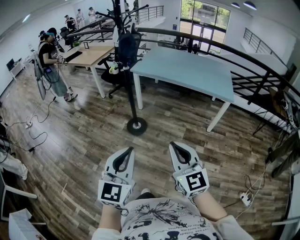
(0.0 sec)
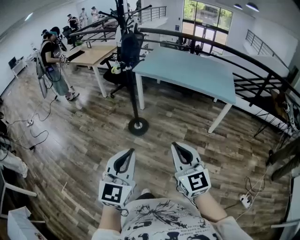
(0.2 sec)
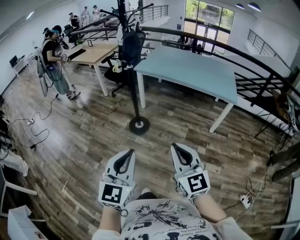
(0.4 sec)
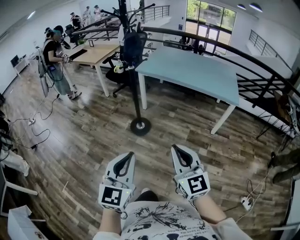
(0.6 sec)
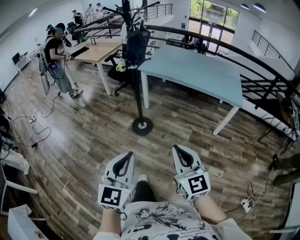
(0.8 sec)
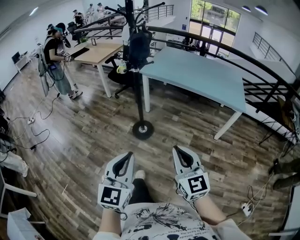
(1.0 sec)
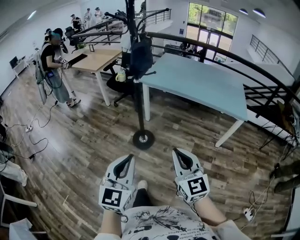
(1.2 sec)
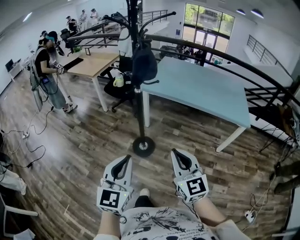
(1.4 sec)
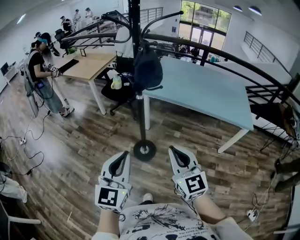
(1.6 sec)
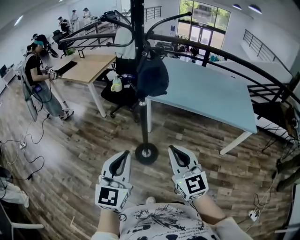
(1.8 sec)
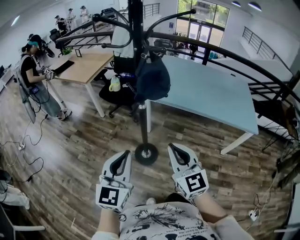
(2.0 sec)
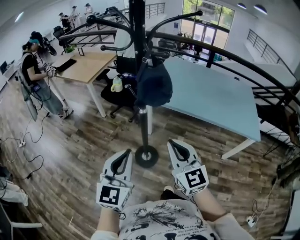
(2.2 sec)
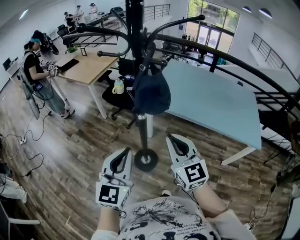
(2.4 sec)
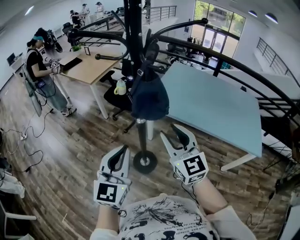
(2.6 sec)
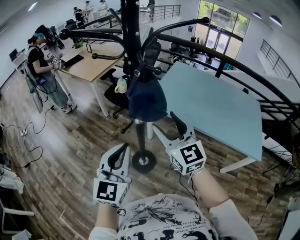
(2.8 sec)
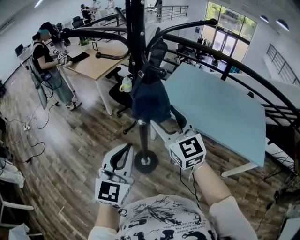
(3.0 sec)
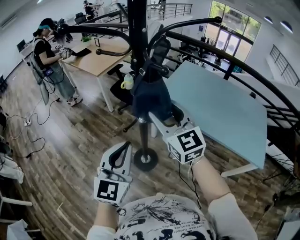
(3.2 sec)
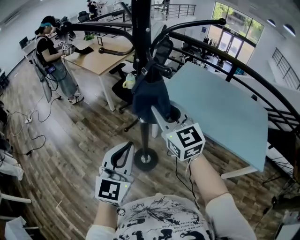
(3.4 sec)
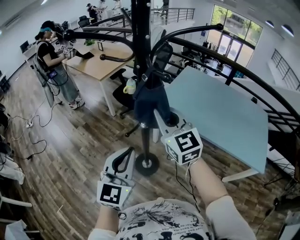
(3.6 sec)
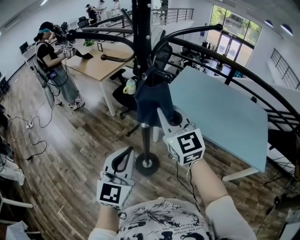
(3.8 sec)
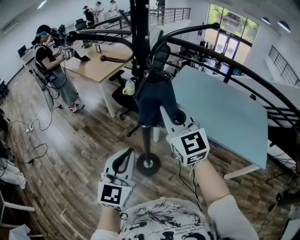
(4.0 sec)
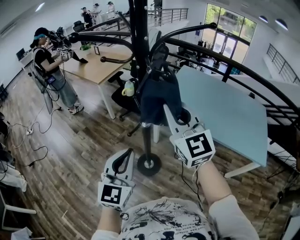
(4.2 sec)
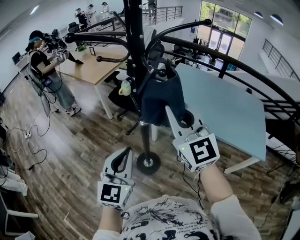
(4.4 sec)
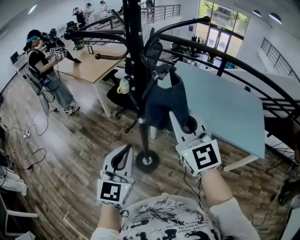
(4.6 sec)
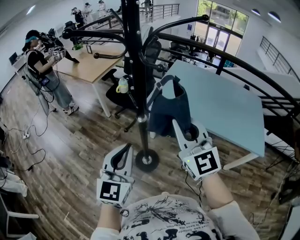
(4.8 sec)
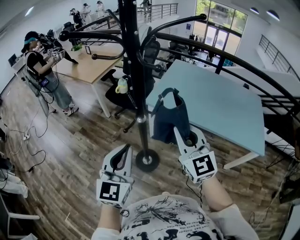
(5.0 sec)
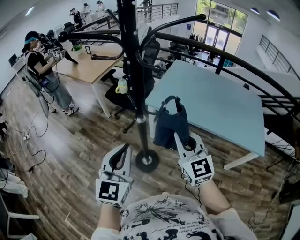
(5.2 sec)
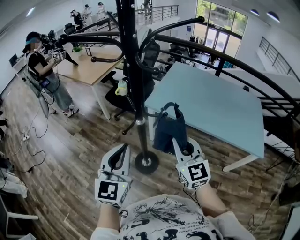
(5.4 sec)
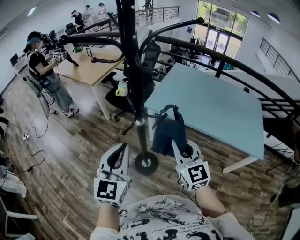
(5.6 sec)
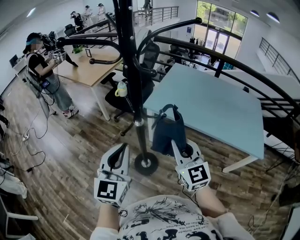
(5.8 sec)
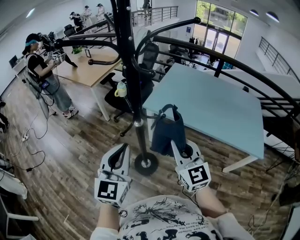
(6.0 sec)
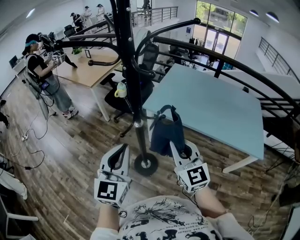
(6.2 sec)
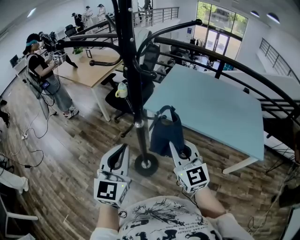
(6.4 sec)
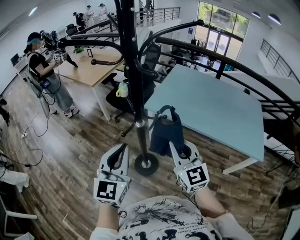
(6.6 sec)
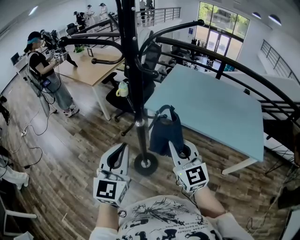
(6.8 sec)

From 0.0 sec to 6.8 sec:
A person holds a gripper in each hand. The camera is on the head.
From 0.0 sec to 1.4 sec: The left gripper is displaced forward and to the left by approximately 30 cm. Meanwhile the right gripper heads forward, covering about 25 cm.
From 1.4 sec to 2.8 sec: Both grippers move forward, some 35 cm. The right gripper opens up.
From 2.8 sec to 4.0 sec: The right gripper travels upward by approximately 5 cm, and closes.
From 4.0 sec to 5.4 sec: The right gripper shifts about 15 cm downward, backward and to the right.
From 5.4 sec to 6.8 sec: There are only small adjustments of the grippers.

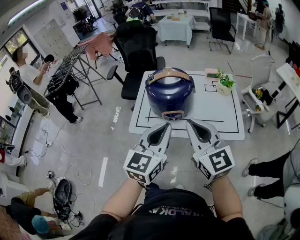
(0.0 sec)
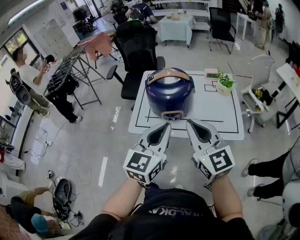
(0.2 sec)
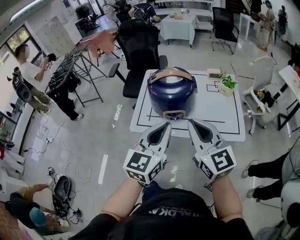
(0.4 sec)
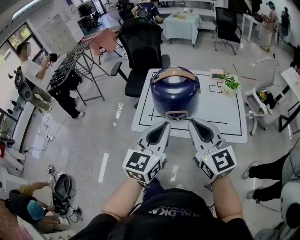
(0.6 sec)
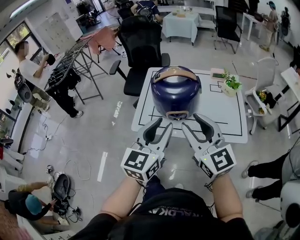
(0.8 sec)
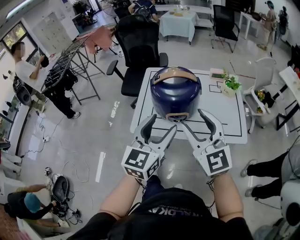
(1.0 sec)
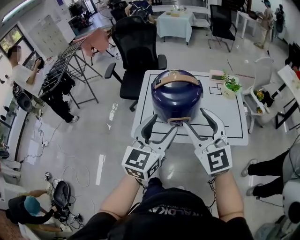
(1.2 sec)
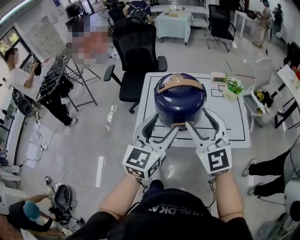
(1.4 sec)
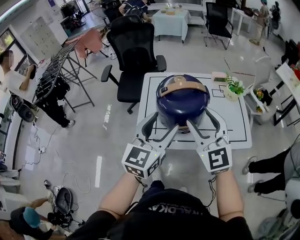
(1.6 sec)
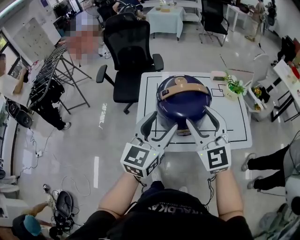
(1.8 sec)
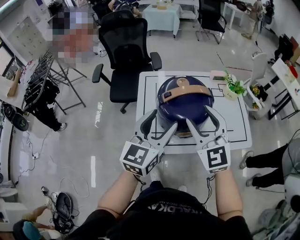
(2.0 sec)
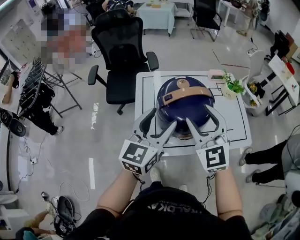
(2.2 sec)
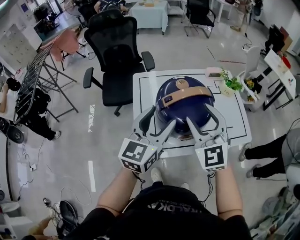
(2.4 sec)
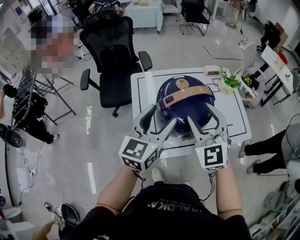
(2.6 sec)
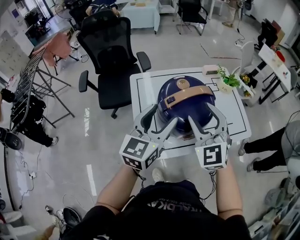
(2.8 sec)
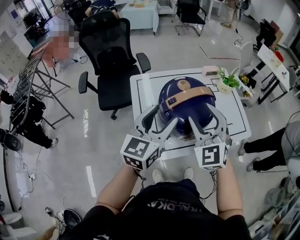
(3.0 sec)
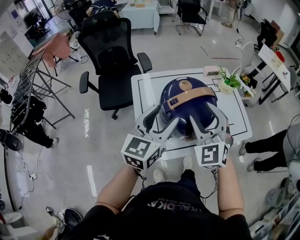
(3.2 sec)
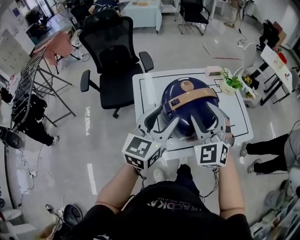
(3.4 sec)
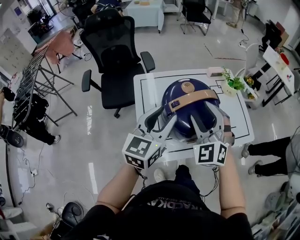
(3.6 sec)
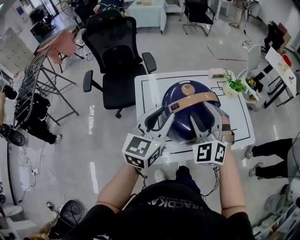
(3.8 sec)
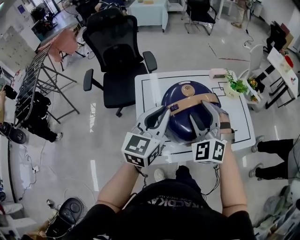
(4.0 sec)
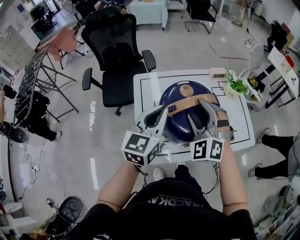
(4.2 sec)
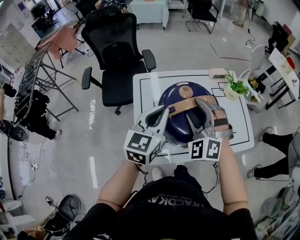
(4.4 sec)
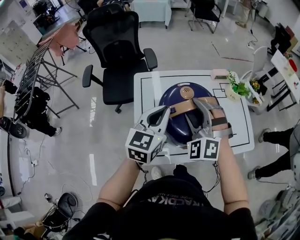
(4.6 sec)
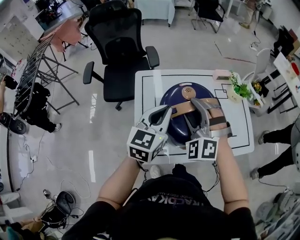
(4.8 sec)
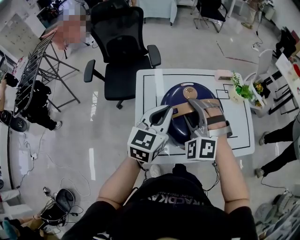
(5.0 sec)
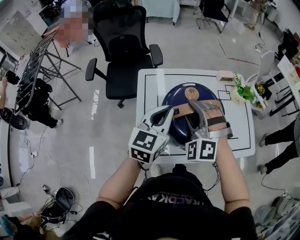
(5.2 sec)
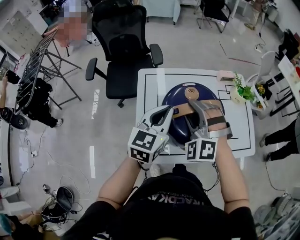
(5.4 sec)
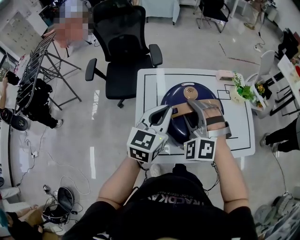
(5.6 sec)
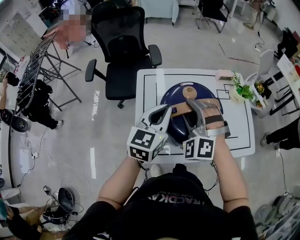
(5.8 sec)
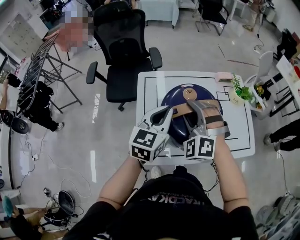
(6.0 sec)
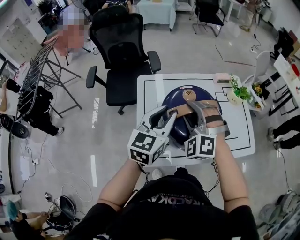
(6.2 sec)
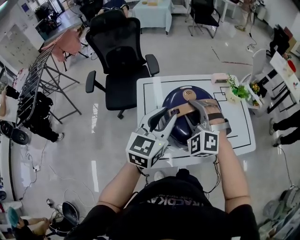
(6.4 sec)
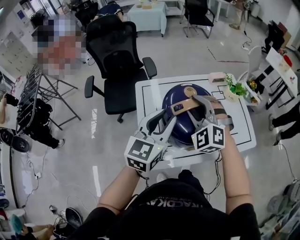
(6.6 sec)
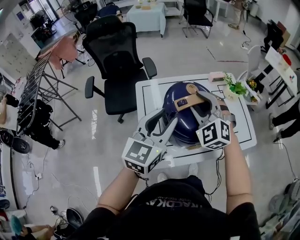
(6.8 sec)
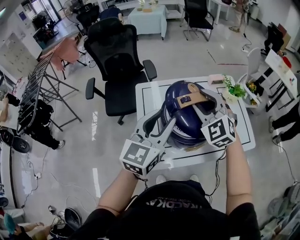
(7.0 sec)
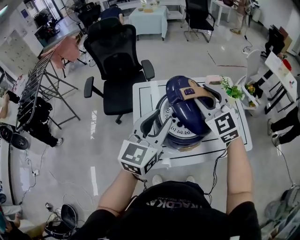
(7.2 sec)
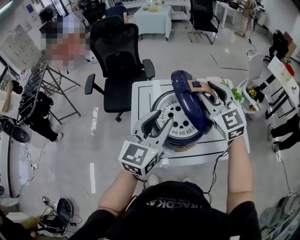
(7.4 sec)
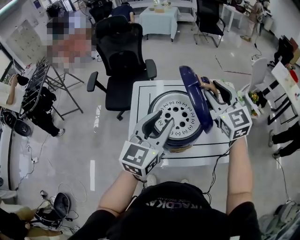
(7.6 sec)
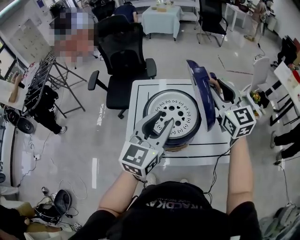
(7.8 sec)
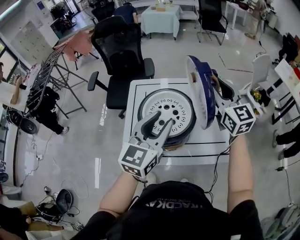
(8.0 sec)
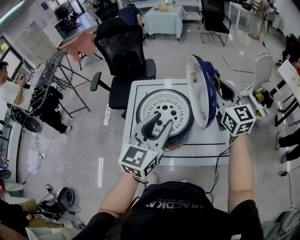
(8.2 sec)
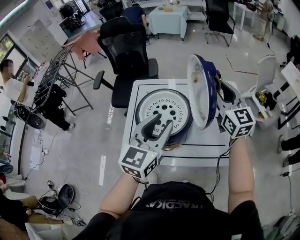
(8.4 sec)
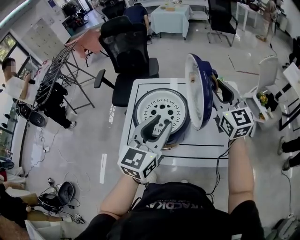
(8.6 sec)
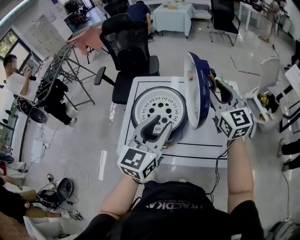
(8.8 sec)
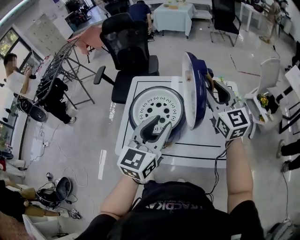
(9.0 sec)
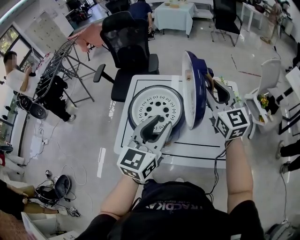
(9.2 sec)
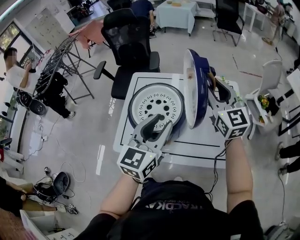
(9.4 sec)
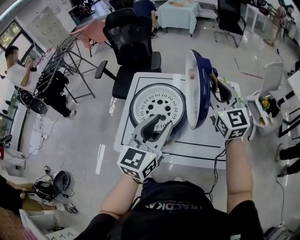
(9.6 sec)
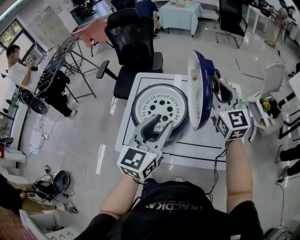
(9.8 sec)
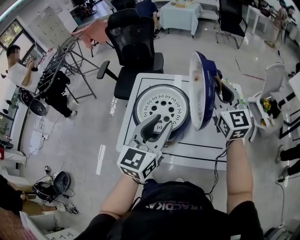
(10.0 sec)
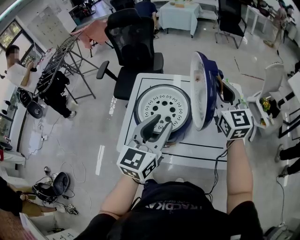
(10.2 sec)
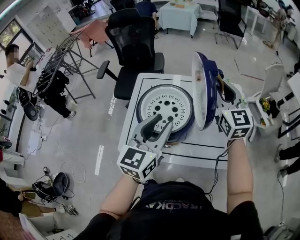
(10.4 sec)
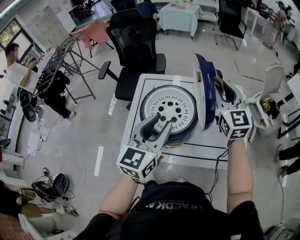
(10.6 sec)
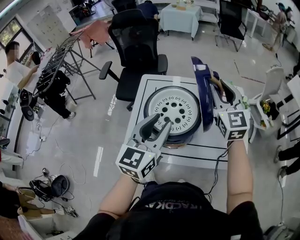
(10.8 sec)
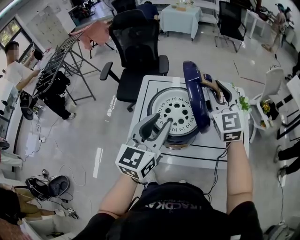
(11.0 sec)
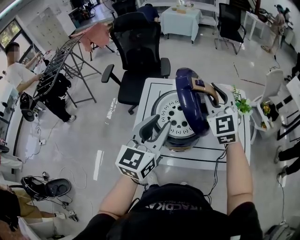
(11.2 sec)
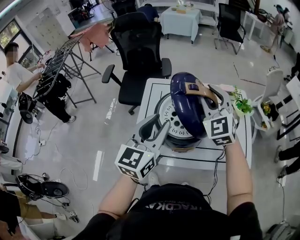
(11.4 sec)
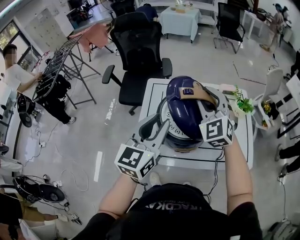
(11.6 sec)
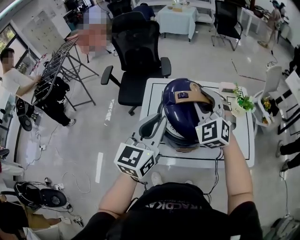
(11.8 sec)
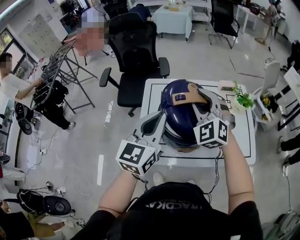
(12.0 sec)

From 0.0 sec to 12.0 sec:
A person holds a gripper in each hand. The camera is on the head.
From 0.0 sec to 1.6 sec: The two grippers go some 15 cm forward and to the left. The left gripper opens its fingers. The right gripper rotates about 20 degrees, and opens up.
From 1.6 sec to 3.0 sec: Both grippers move forward and to the left, about 15 cm. The right gripper changes its angle by roughly 30 degrees.
From 3.0 sec to 4.4 sec: The two grippers go about 5 cm forward. The left gripper closes its fingers. Meanwhile the right gripper turns by approximately 30 degrees.
From 4.4 sec to 6.0 sec: The grippers move only a little.
From 6.0 sec to 7.6 sec: The left gripper goes about 10 cm upward, to the right and backward, and opens, while the right gripper goes some 20 cm to the right and upward, and rotates around the line of its fingers by some 50 degrees, clockwise from behind.
From 7.6 sec to 9.0 sec: The grippers both shift to the right by about 10 cm.
From 9.0 sec to 10.4 sec: There are only small adjustments of the grippers.
From 10.4 sec to 12.0 sec: The grippers both shift to the left by approximately 15 cm. The left gripper closes its fingers, while the right gripper twists roughly 40 degrees counterclockwise, seen from behind.

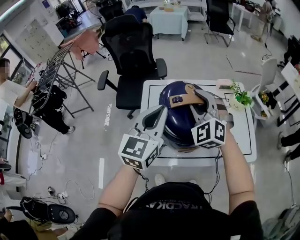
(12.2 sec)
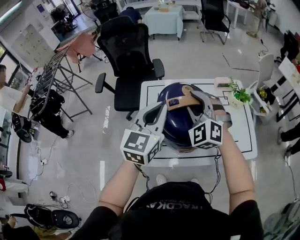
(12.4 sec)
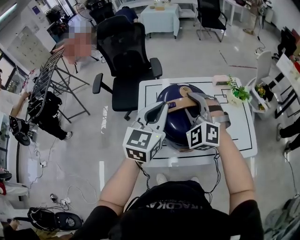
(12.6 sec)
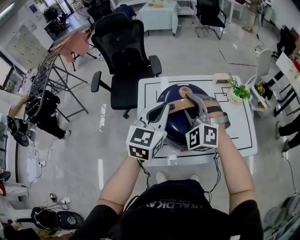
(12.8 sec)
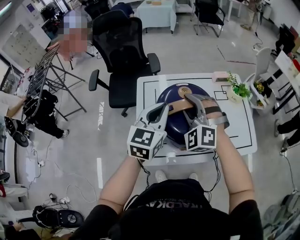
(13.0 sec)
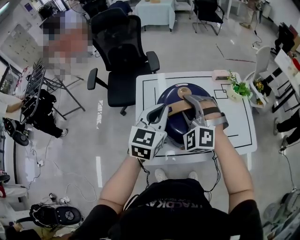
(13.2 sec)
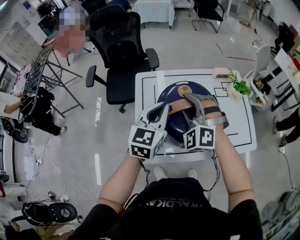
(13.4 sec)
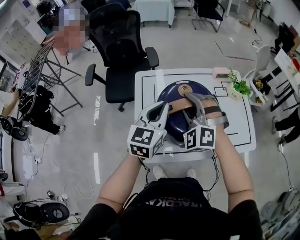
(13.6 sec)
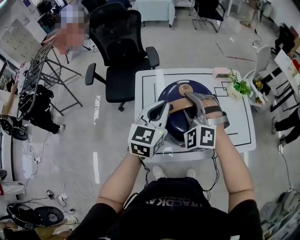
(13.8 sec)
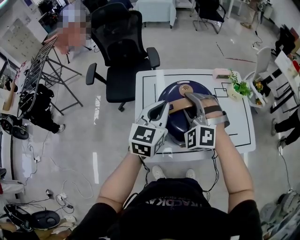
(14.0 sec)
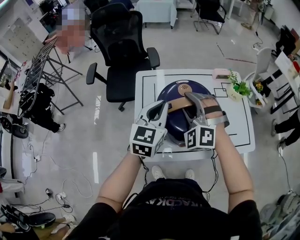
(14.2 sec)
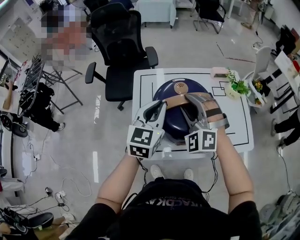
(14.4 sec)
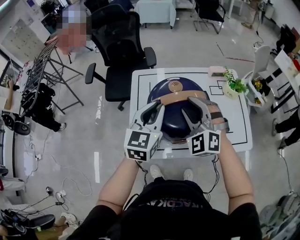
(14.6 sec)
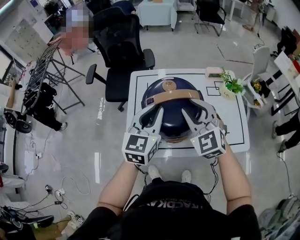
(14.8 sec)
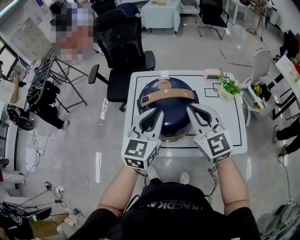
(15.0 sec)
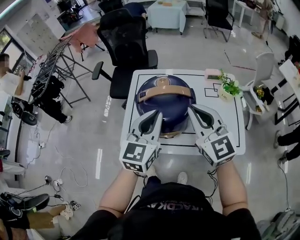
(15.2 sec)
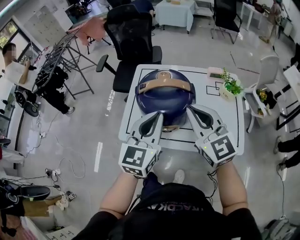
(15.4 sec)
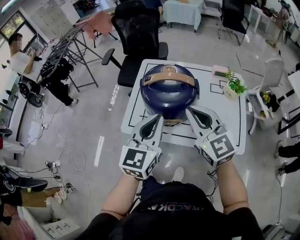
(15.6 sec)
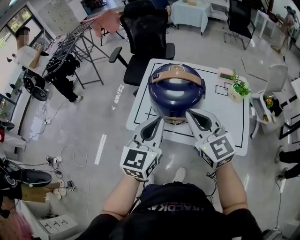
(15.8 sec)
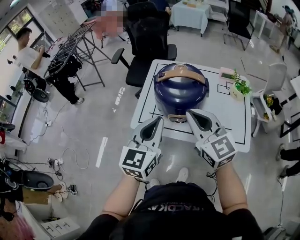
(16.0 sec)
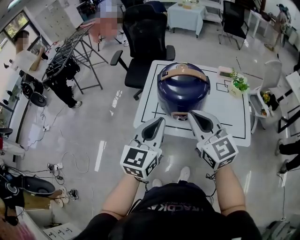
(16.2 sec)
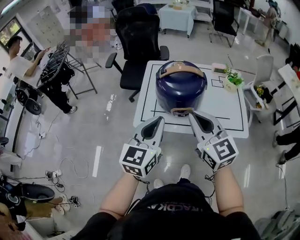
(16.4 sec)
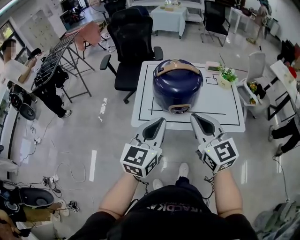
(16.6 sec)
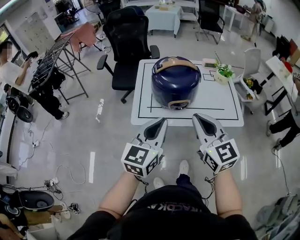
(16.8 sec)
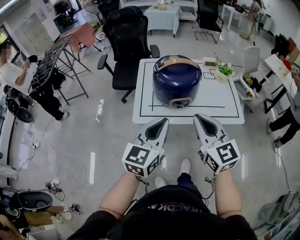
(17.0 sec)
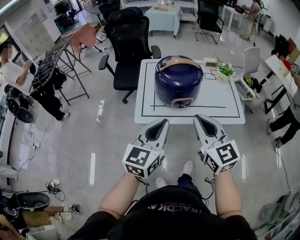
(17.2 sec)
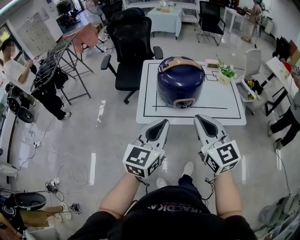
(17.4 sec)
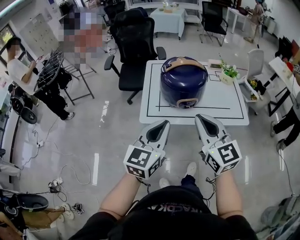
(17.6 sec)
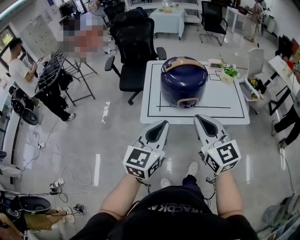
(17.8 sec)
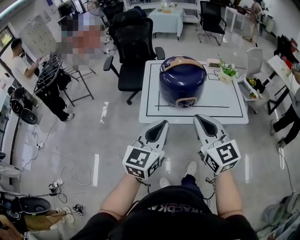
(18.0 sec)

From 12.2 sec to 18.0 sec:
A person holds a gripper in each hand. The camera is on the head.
From 12.2 sec to 13.6 sec: The grippers both shift downward by approximately 5 cm.
From 13.6 sec to 15.0 sec: The right gripper shifts roughly 15 cm to the right, backward and upward, rolls clockwise, seen from behind, by approximately 50 degrees, and closes its fingers. The left gripper is displaced backward and to the right by approximately 10 cm.
From 15.0 sec to 16.6 sec: Both grippers travel together backward, approximately 20 cm.
From 16.6 sec to 18.0 sec: Both grippers move backward, approximately 5 cm.
